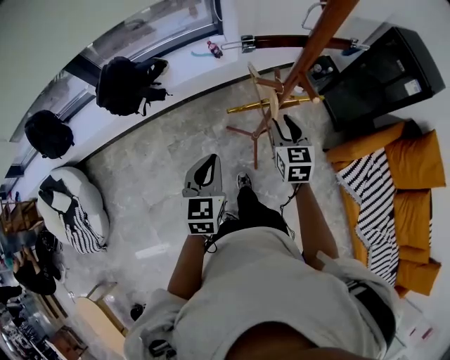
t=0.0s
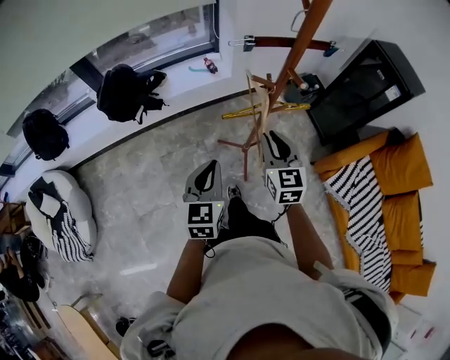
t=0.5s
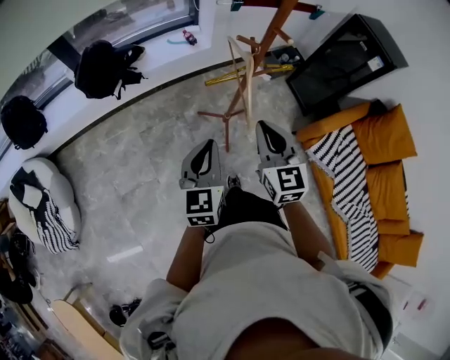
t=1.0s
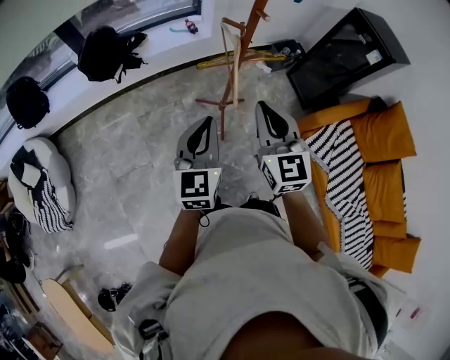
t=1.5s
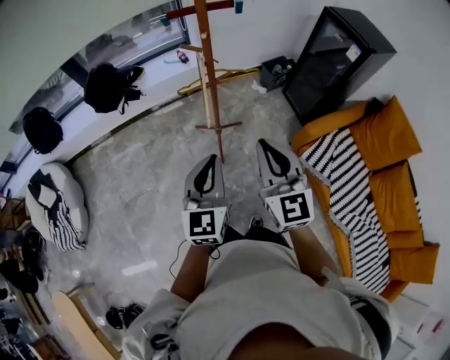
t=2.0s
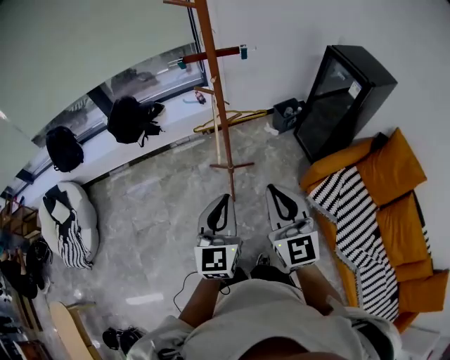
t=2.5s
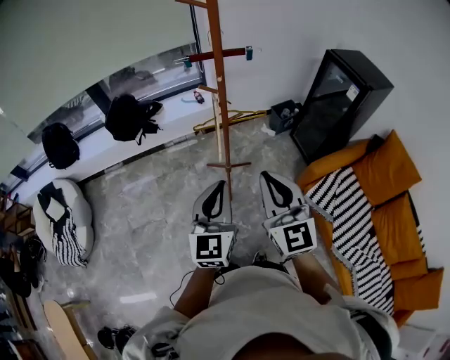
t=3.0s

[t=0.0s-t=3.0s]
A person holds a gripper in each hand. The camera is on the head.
t=0.0s to t=1.5s: The left gripper heads backward, upward and to the right, covering approximately 20 cm, while the right gripper moves backward and upward, about 30 cm, rotates roughly 20 degrees, and closes up.
t=1.5s to t=3.0s: The left gripper goes approximately 20 cm to the right, backward and upward, while the right gripper shifts about 20 cm backward, to the right and upward.

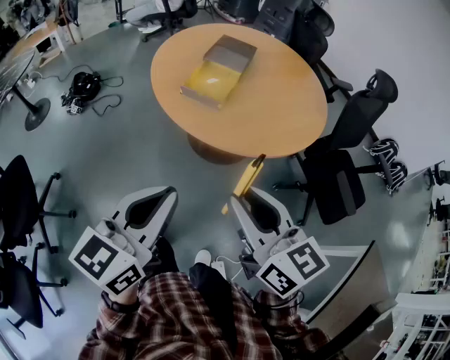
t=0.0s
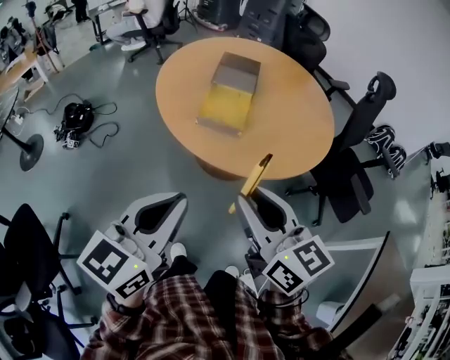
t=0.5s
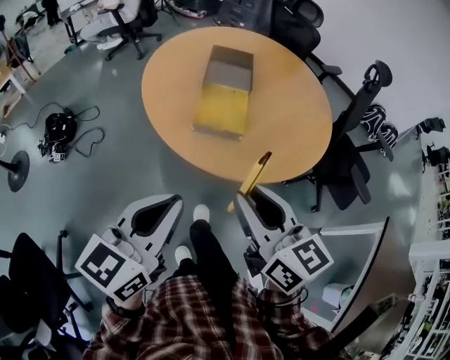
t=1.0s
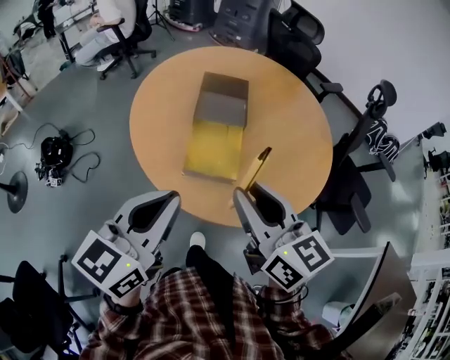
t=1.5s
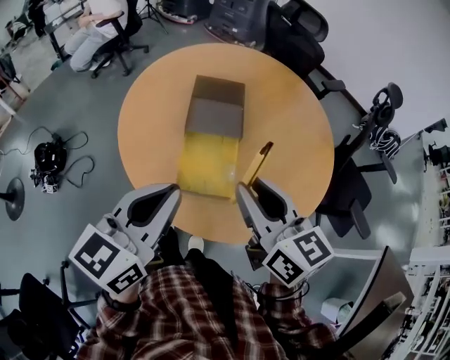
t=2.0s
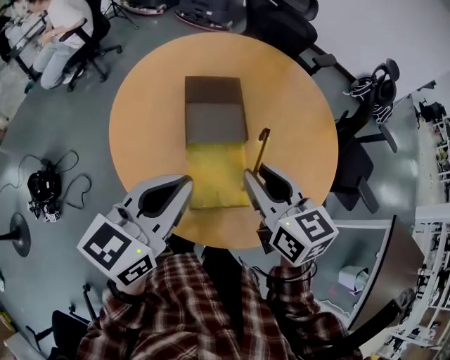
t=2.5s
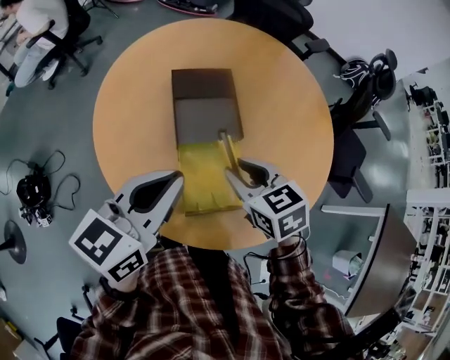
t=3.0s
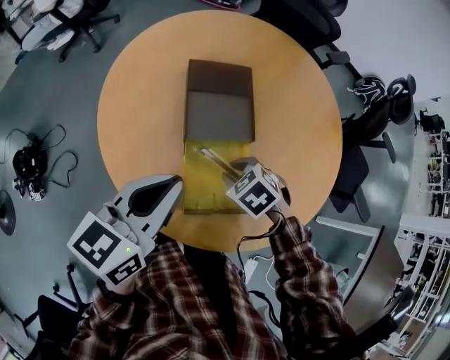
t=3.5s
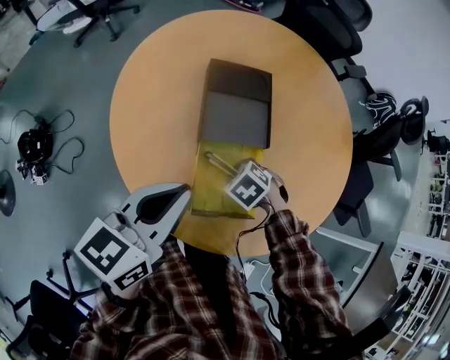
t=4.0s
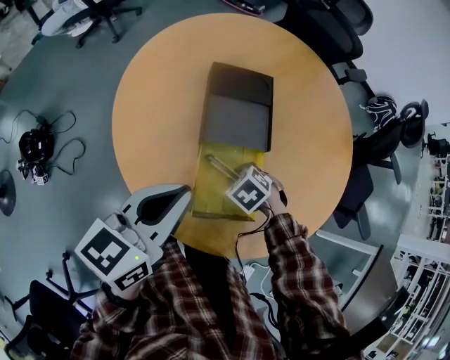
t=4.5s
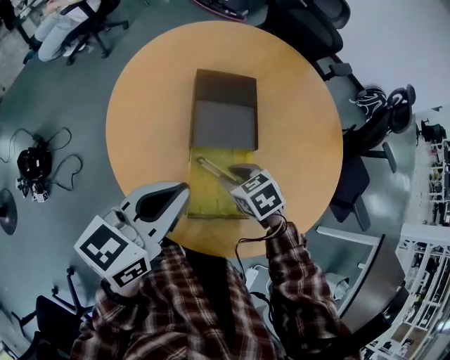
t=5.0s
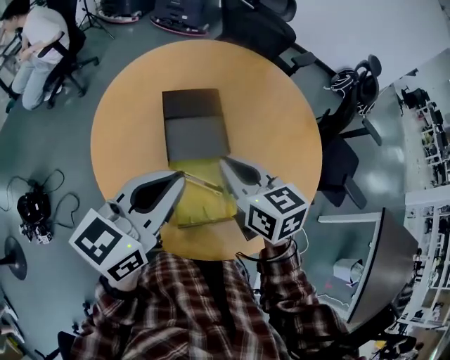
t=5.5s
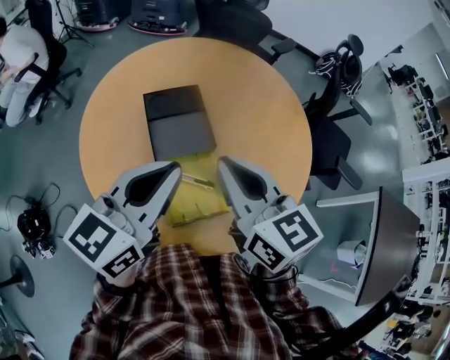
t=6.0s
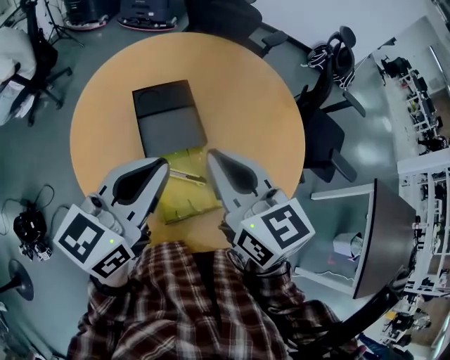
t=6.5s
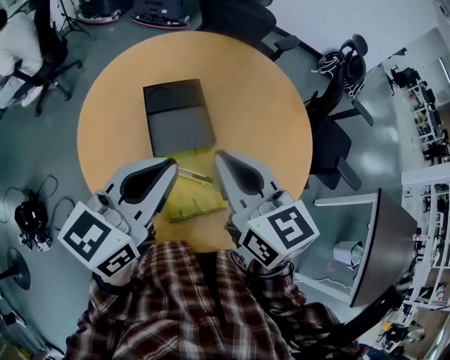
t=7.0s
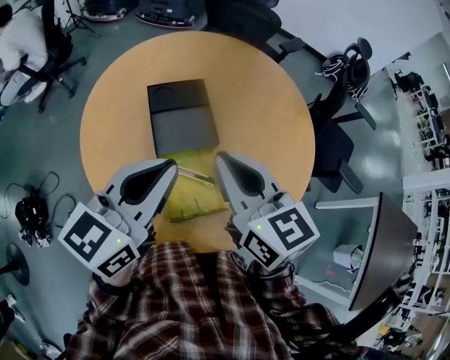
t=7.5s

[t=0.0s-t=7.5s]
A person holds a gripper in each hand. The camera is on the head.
t=0.0s to t=2.0s: The two grippers travel together, forward, roughly 40 cm.
t=2.0s to t=4.0s: The left gripper shifts by about 20 cm. The right gripper heads downward, covering approximately 30 cm, and points its fingers some 70 degrees further downward.
t=4.0s to t=5.5s: The right gripper shifts about 25 cm upward, angles its fingers upward, by approximately 60 degrees, and closes; the left gripper travels upward by some 10 cm.
t=5.5s to t=7.5s: The right gripper goes about 5 cm upward.

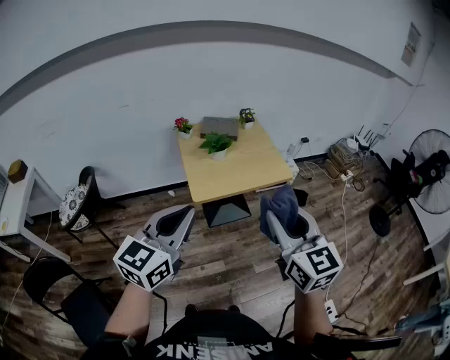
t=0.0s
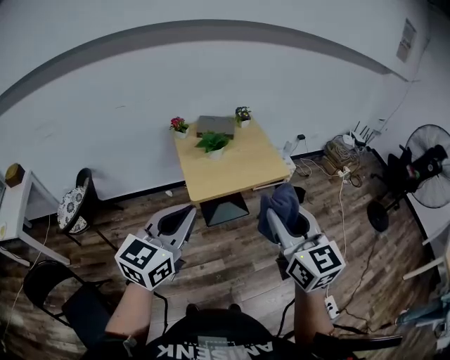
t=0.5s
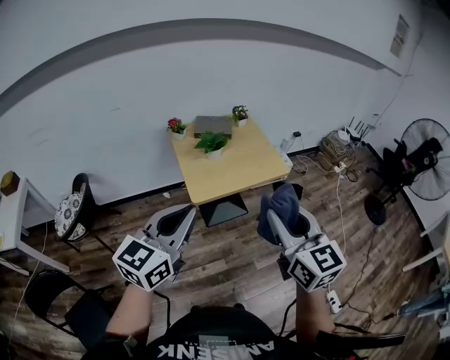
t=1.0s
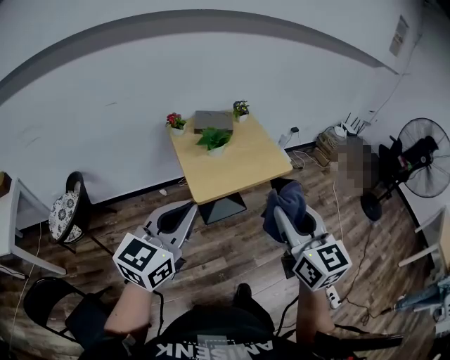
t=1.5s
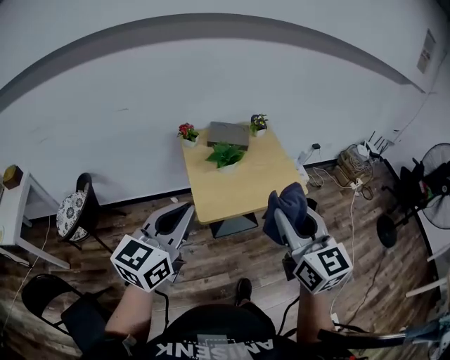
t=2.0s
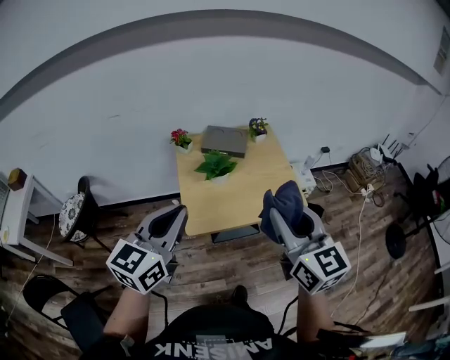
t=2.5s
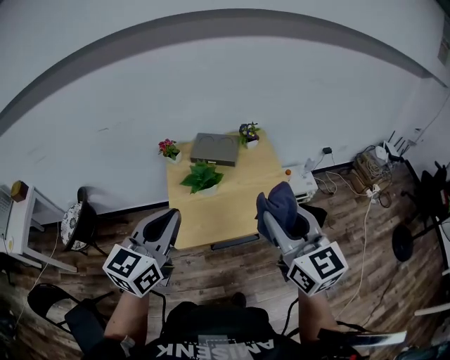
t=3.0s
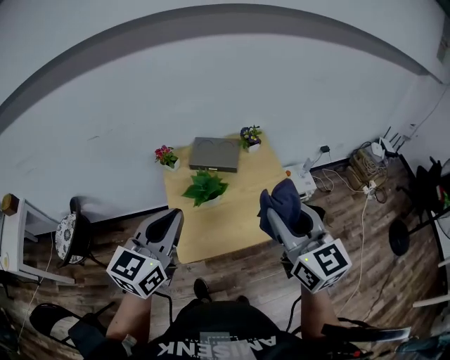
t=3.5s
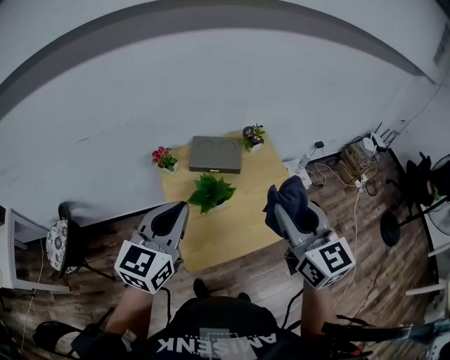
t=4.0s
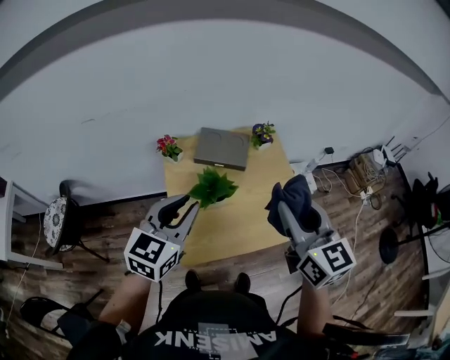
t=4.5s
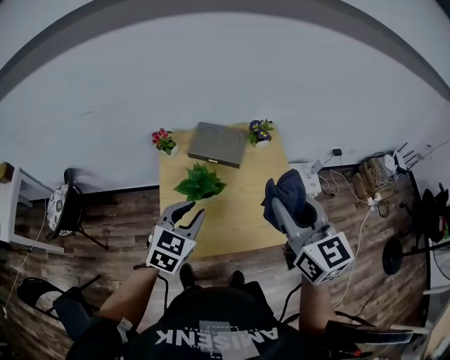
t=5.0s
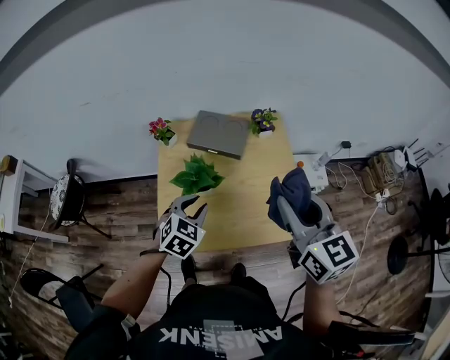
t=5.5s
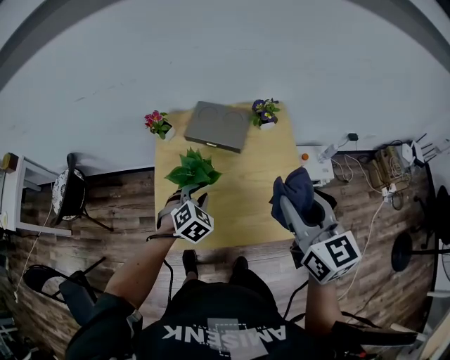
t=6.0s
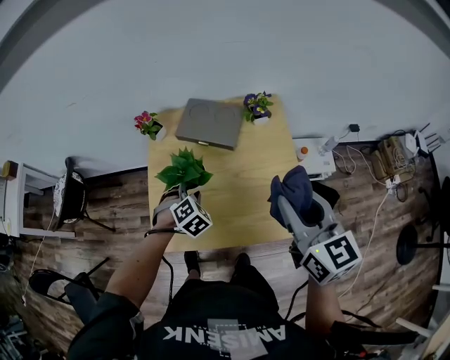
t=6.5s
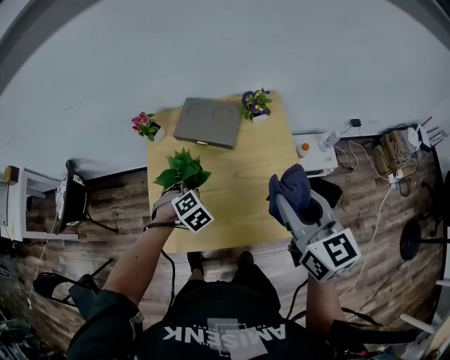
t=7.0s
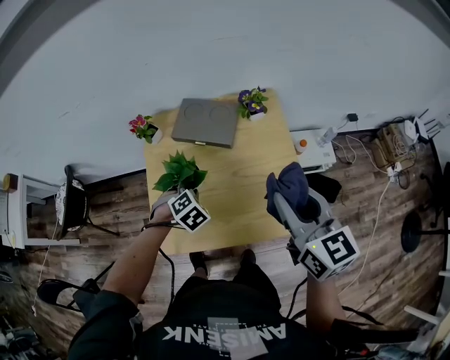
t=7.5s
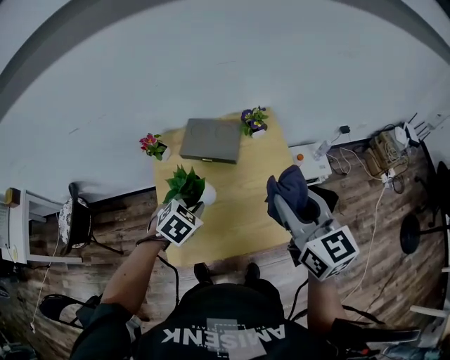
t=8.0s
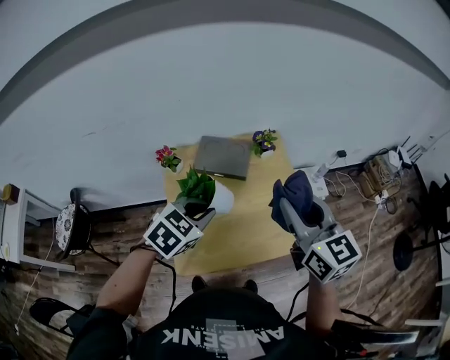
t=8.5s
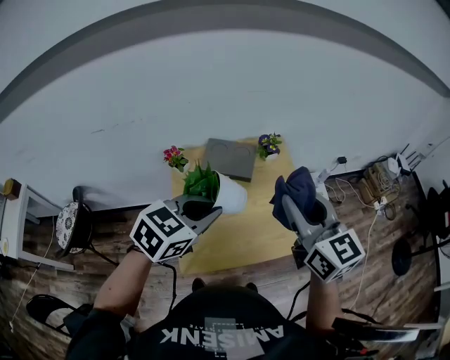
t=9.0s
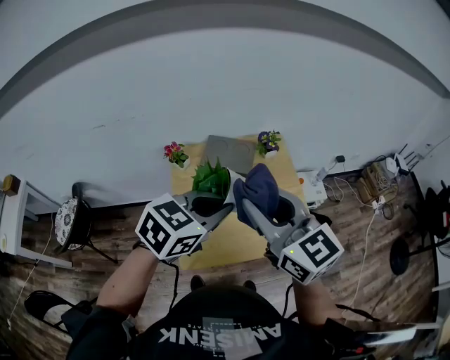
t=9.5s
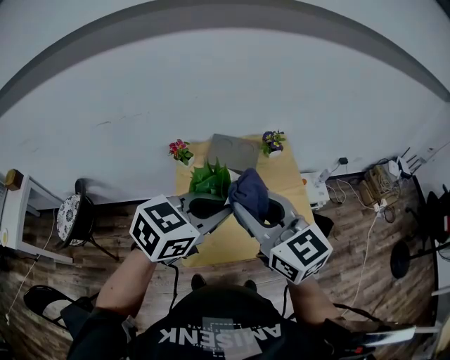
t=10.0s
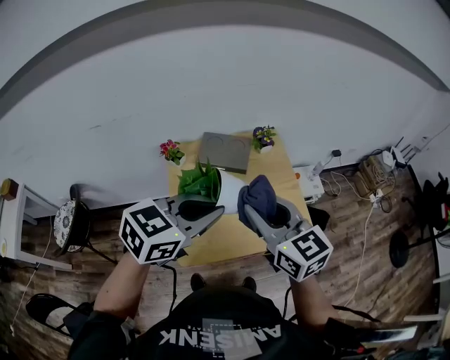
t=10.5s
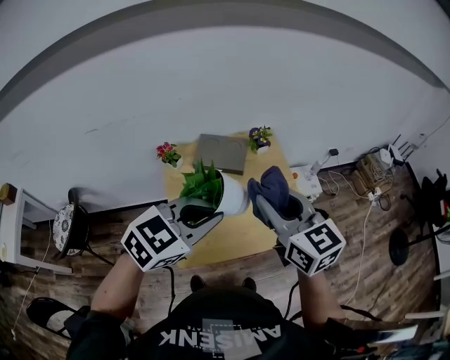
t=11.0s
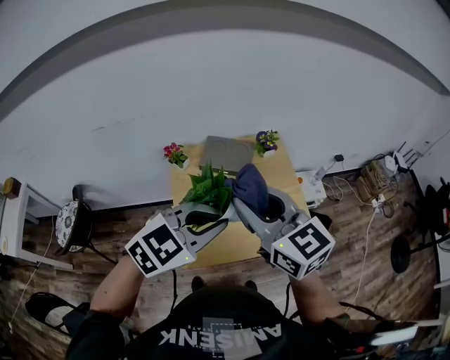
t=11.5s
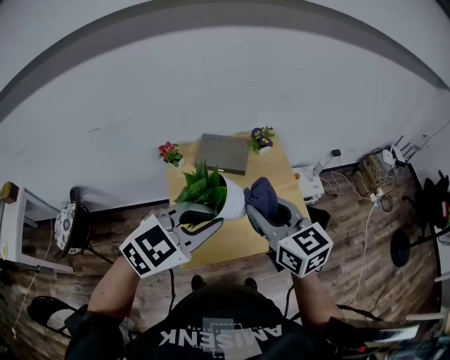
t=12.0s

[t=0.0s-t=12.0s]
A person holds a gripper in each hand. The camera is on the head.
t=0.0s to t=2.0s: The right gripper shifts approximately 15 cm forward. The left gripper shifts some 15 cm forward and to the left.
t=2.0s to t=4.0s: The grippers both shift forward by roughly 30 cm.
t=4.0s to t=6.0s: The right gripper shifts roughly 20 cm to the right, downward and forward. The left gripper travels downward by roughly 30 cm, angles its fingers downward, by some 40 degrees, and opens its fingers.
t=6.0s to t=8.0s: The left gripper shifts some 5 cm upward.
t=8.0s to t=10.0s: The left gripper moves upward and backward, roughly 25 cm, and points its fingers approximately 30 degrees further upward; the right gripper goes approximately 20 cm to the left, backward and upward.
t=10.0s to t=12.0s: The right gripper goes left and right, about 10 cm each way, reversing 2 times. Meanwhile the left gripper rotates roughly 20 degrees.

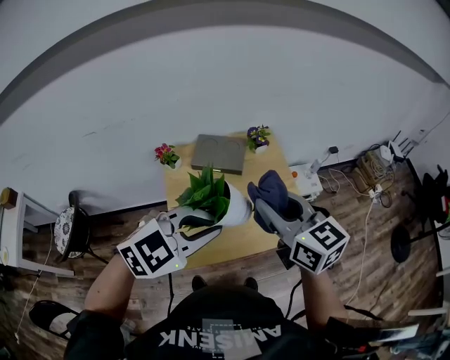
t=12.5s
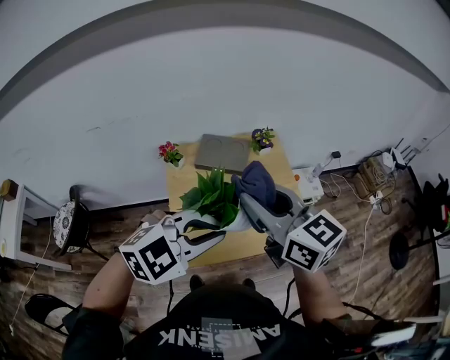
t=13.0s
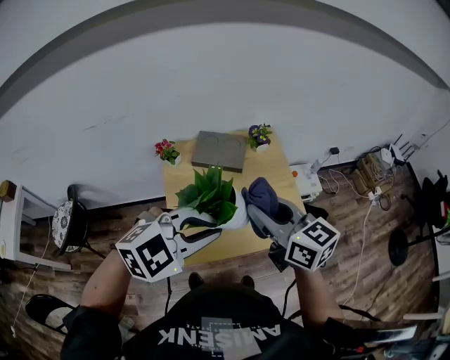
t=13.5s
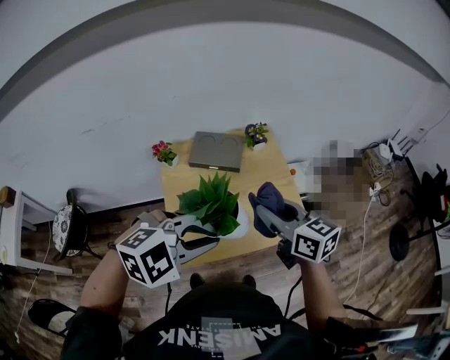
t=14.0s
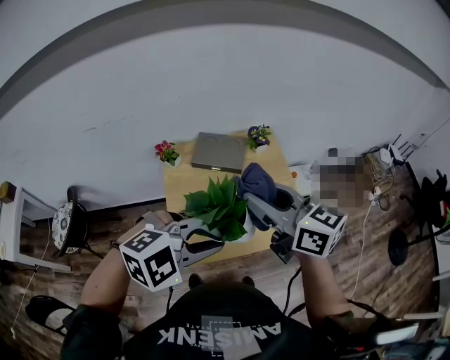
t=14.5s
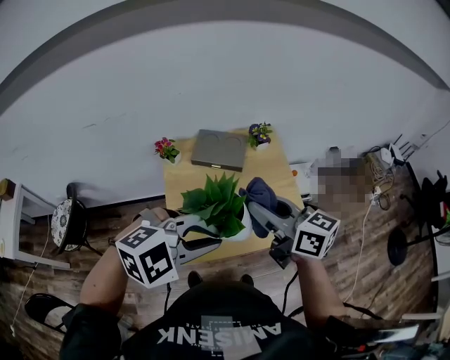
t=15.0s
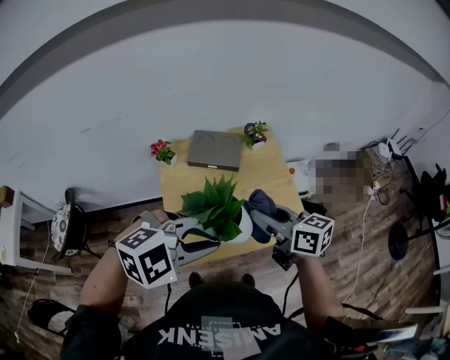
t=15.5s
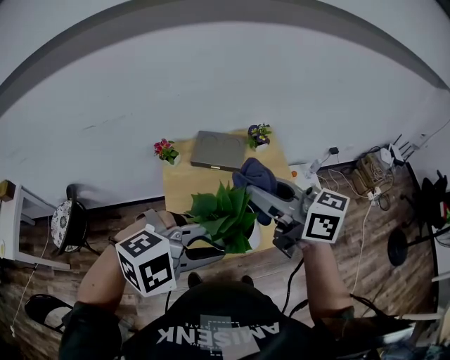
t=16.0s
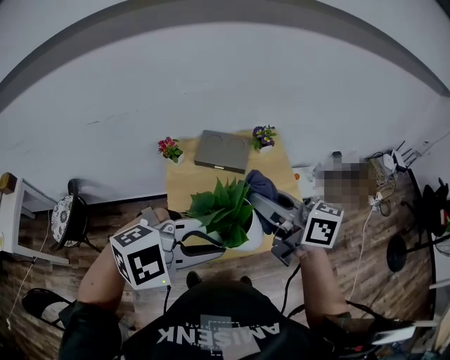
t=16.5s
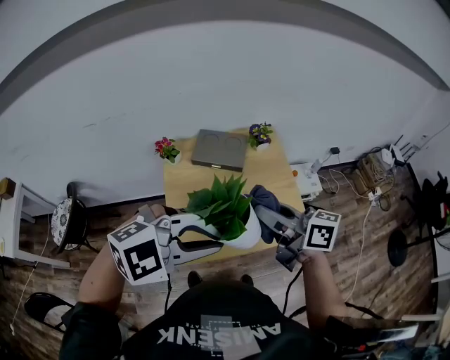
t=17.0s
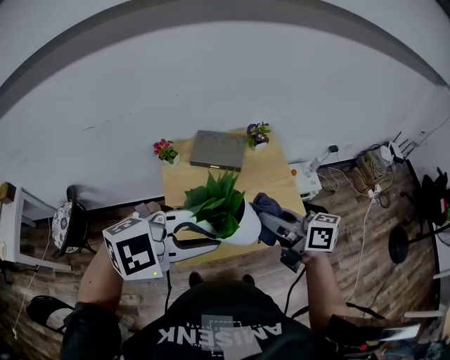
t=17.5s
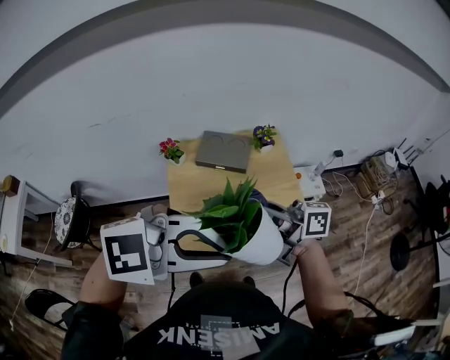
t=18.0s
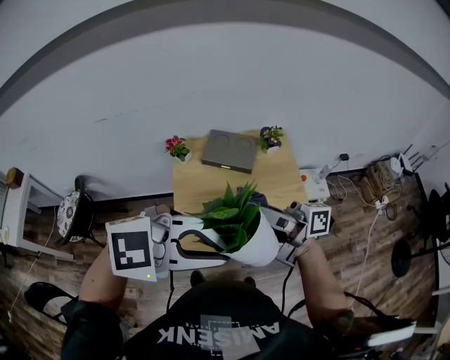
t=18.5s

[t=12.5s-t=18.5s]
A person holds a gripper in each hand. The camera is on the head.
t=12.5s to t=14.5s: The left gripper swivels approximately 20 degrees. Meanwhile the right gripper goes up and down, roughly 10 cm each way, reversing 2 times.
t=14.5s to t=16.5s: The right gripper reaches some 10 cm downward, then returns.
t=16.5s to t=18.5s: The right gripper reaches some 10 cm downward, then returns, and swivels approximately 40 degrees.
